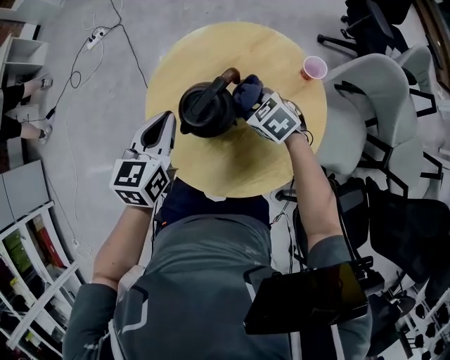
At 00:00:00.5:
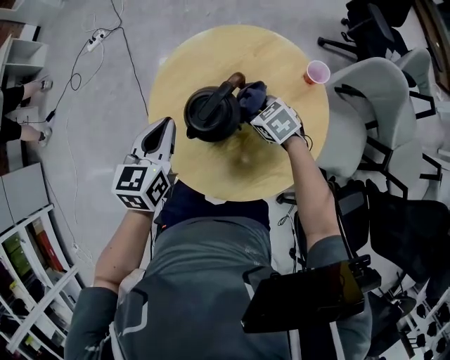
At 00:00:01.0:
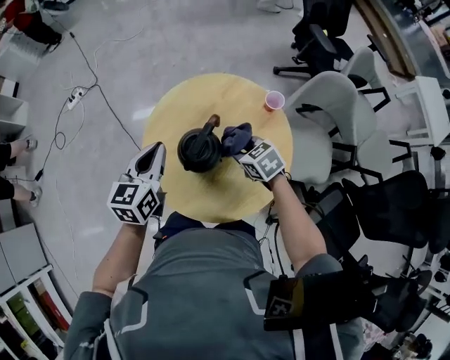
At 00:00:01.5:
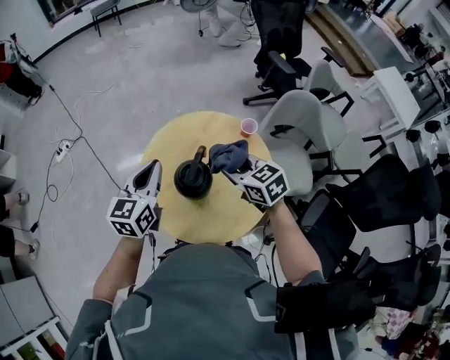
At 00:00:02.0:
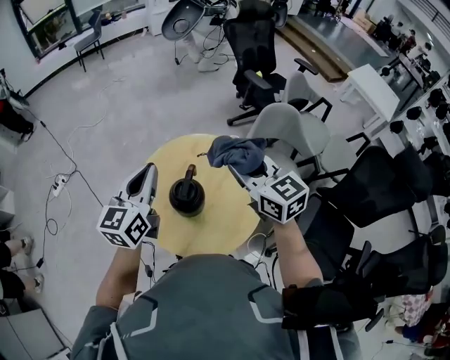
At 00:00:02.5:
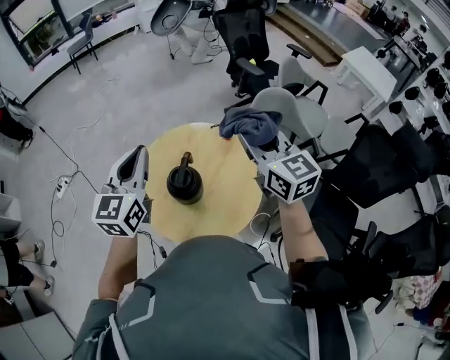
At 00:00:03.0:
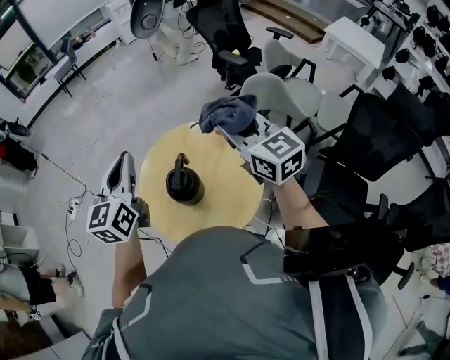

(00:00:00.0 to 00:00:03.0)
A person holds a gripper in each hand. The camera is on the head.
00:00:00.0 - 00:00:01.5: The left gripper goes about 15 cm upward, and swivels approximately 20 degrees, while the right gripper travels upward by roughly 20 cm, and swivels about 40 degrees.
00:00:01.5 - 00:00:03.0: The left gripper moves upward, about 15 cm, while the right gripper moves upward and to the right, some 20 cm, and changes its angle by approximately 40 degrees.

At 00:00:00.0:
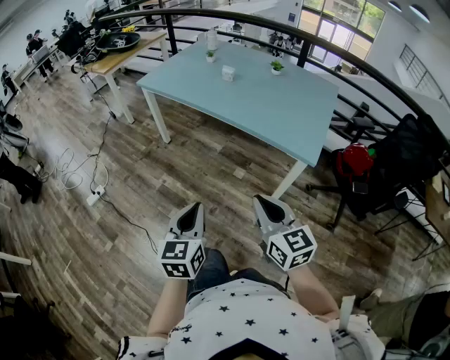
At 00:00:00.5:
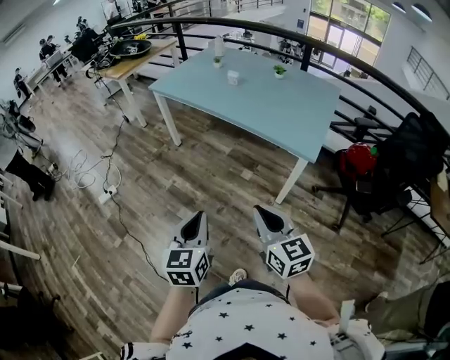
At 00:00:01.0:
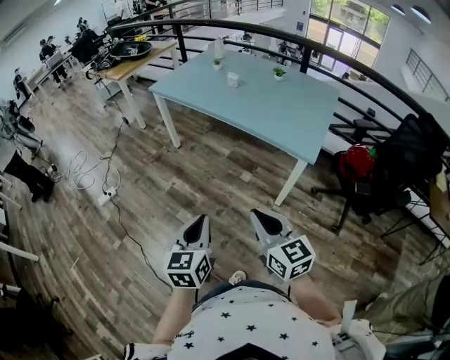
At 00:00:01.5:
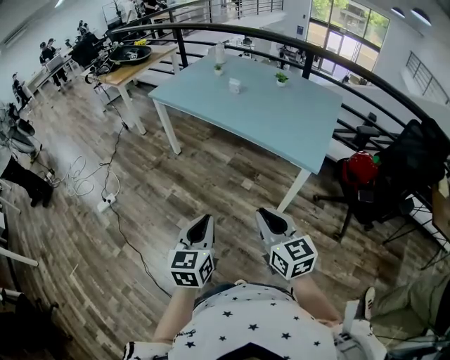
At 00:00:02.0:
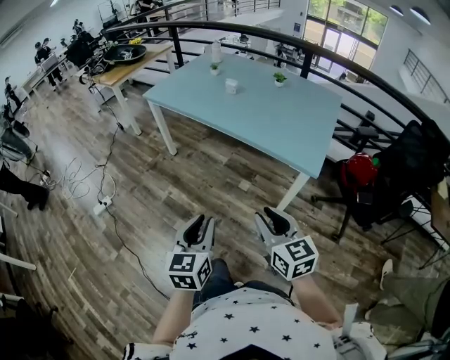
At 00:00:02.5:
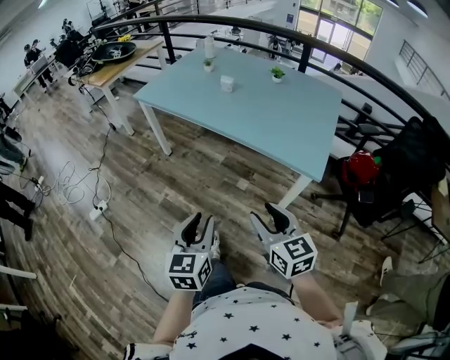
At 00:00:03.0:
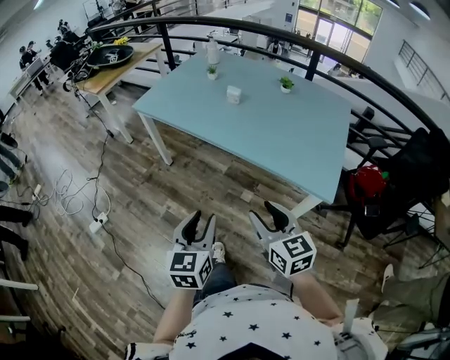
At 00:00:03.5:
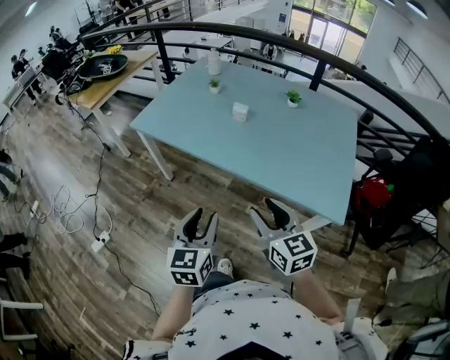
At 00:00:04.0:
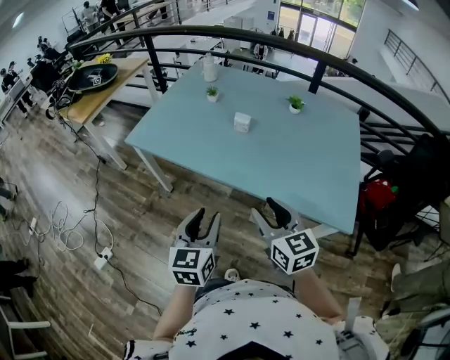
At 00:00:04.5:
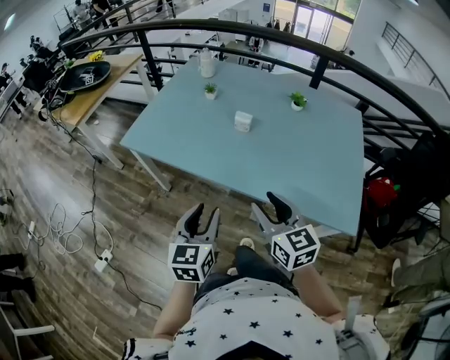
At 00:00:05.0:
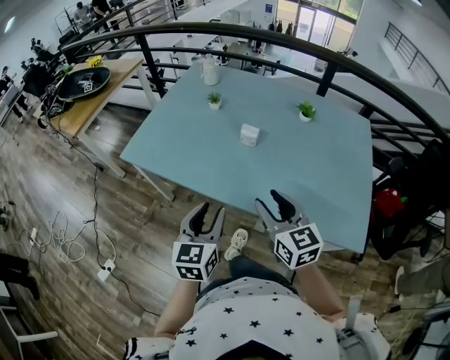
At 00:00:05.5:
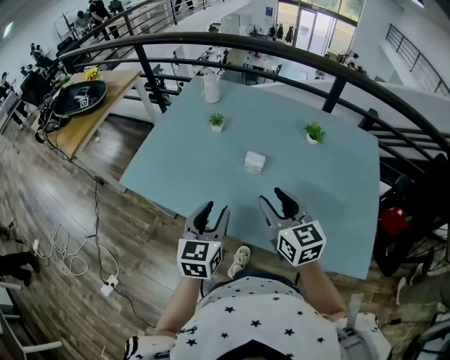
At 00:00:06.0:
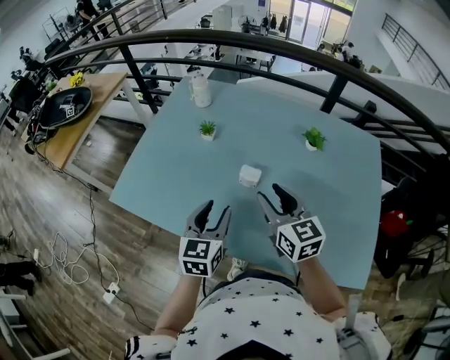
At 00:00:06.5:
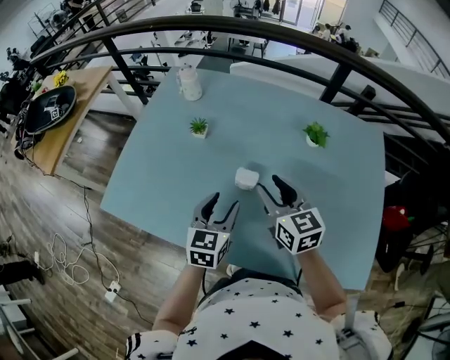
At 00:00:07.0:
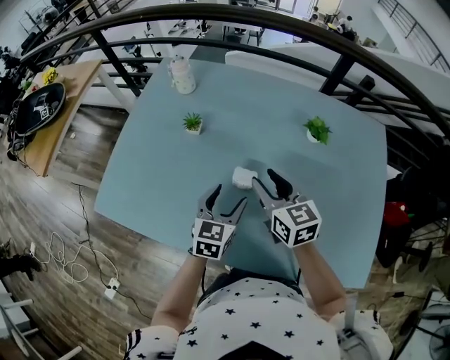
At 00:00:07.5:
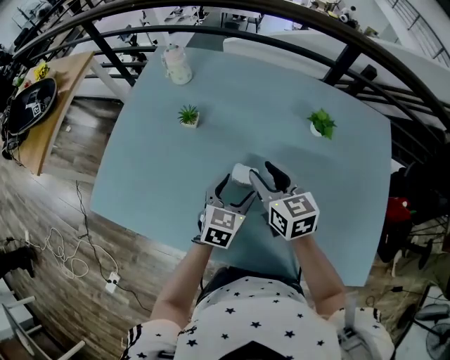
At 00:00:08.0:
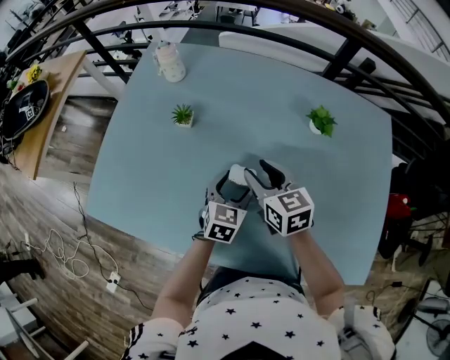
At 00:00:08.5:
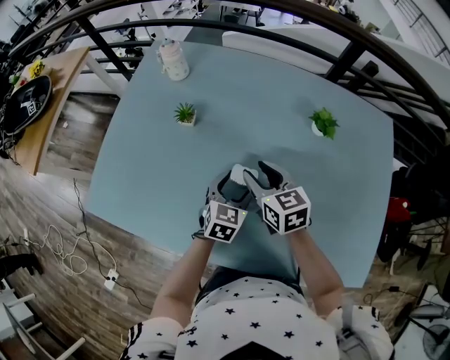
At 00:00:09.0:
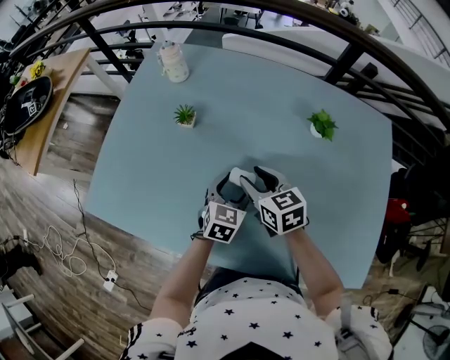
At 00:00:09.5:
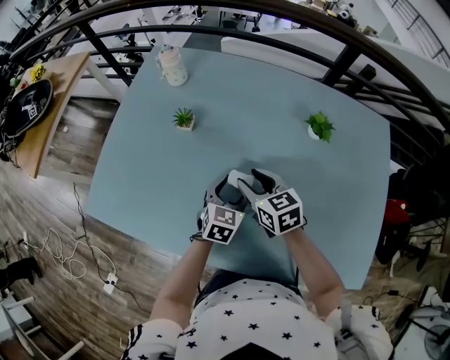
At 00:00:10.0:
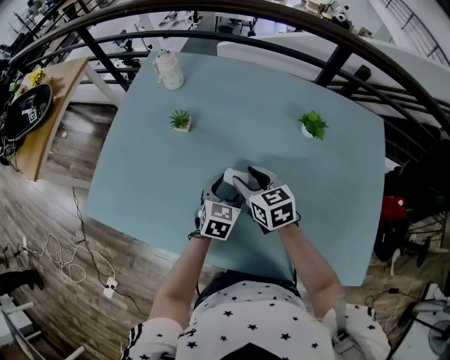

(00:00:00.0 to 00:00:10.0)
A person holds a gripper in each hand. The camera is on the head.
00:00:00.0 - 00:00:02.0: The right gripper goes backward and returns, approximately 10 cm each way. The left gripper moves approximately 10 cm backward and comes back.
00:00:02.0 - 00:00:04.0: The two grippers travel together, forward, approximately 40 cm.
00:00:04.0 - 00:00:06.0: The two grippers go approximately 35 cm forward.
00:00:06.0 - 00:00:08.0: The right gripper heads forward and downward, covering approximately 20 cm, while the left gripper moves downward, forward and to the right, about 25 cm, swivels some 20 degrees, and opens up.
00:00:08.0 - 00:00:10.0: The grippers make only small movements.

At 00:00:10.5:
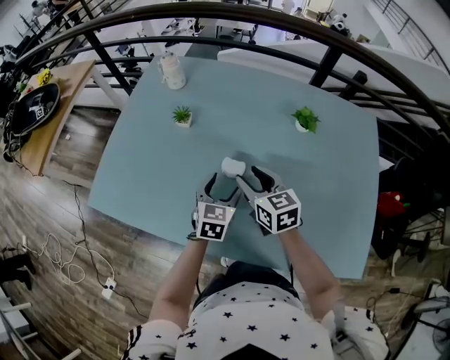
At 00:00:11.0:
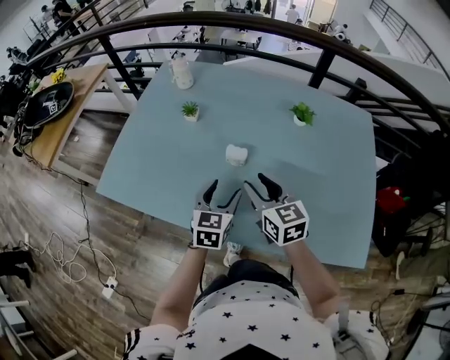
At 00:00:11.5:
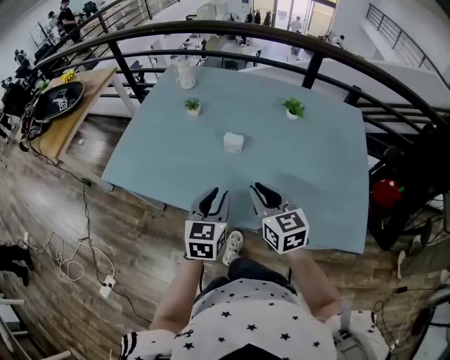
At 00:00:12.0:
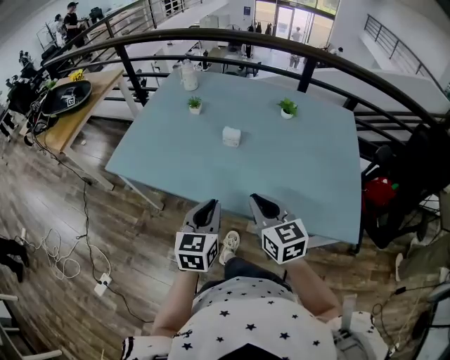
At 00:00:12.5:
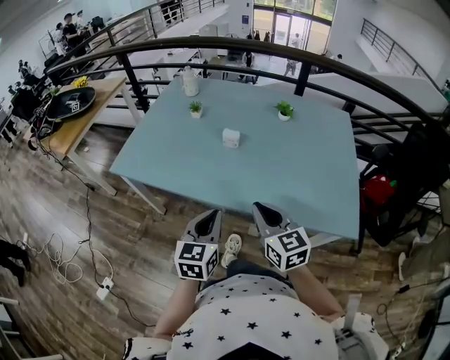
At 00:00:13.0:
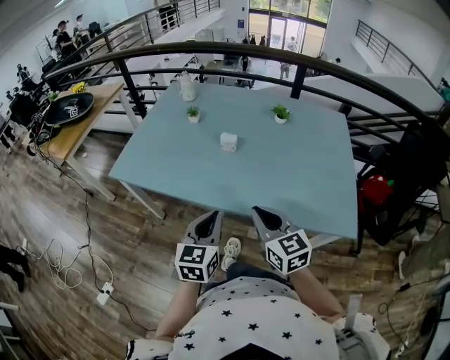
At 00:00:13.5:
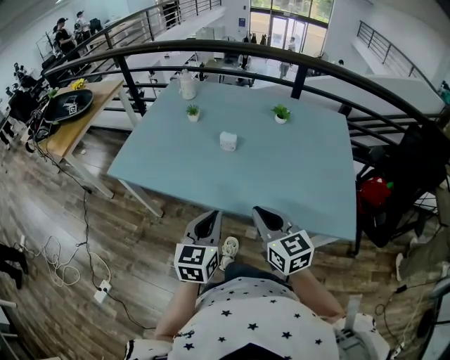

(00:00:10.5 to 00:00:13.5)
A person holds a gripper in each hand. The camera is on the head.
00:00:10.5 - 00:00:12.0: Both grippers travel together backward, roughly 30 cm. The right gripper closes its fingers; the left gripper closes.
00:00:12.0 - 00:00:13.5: The grippers both shift backward by roughly 5 cm.

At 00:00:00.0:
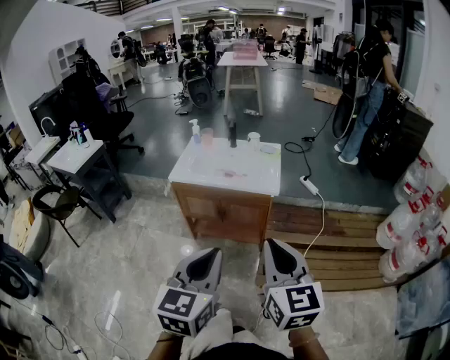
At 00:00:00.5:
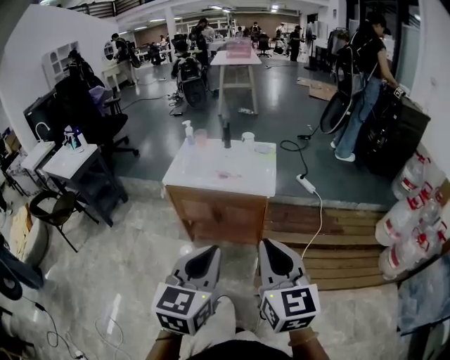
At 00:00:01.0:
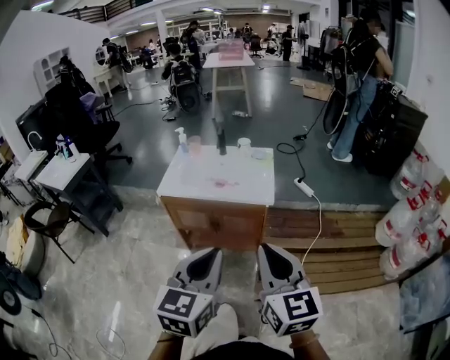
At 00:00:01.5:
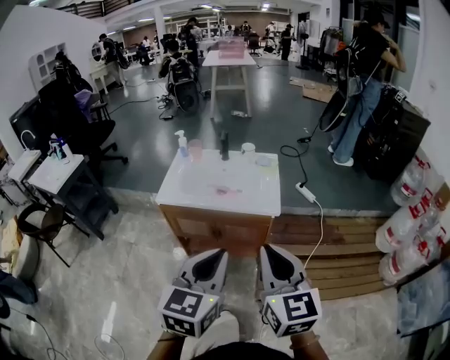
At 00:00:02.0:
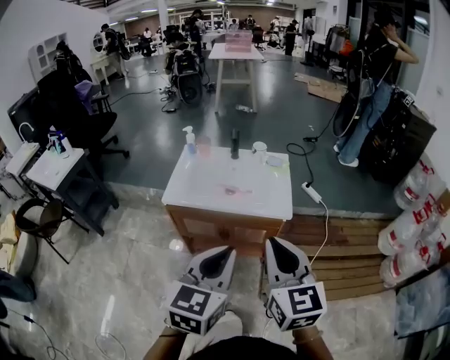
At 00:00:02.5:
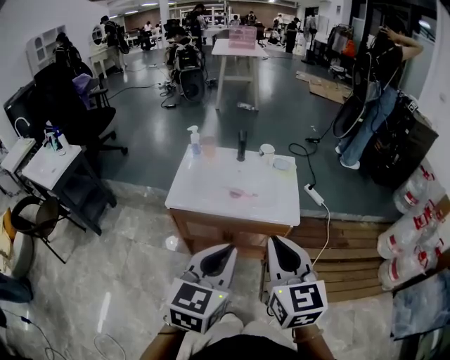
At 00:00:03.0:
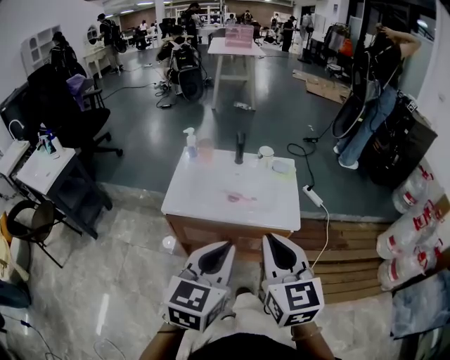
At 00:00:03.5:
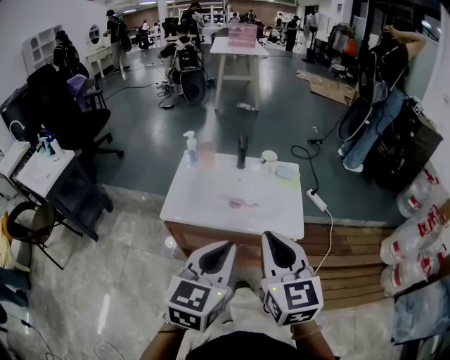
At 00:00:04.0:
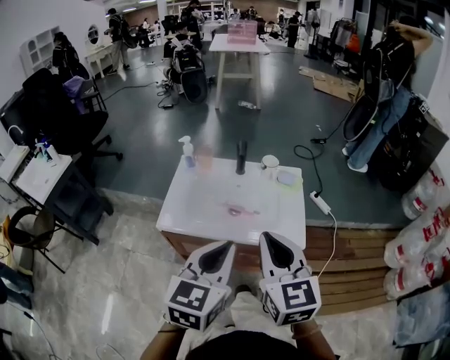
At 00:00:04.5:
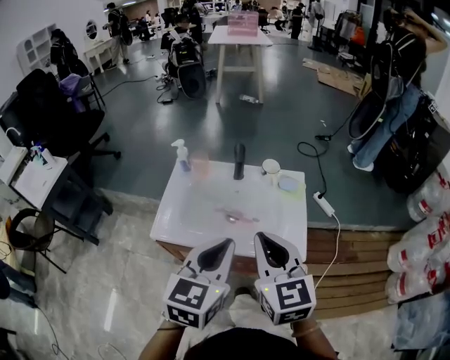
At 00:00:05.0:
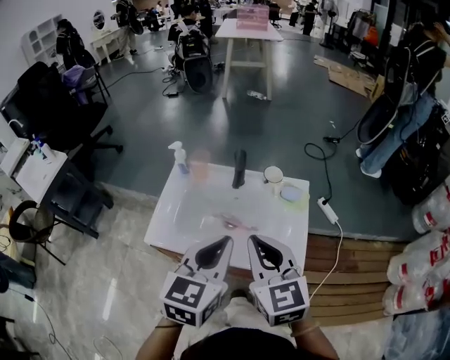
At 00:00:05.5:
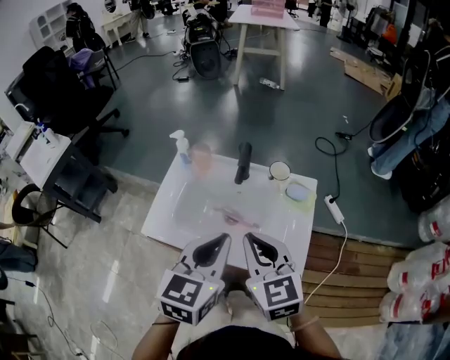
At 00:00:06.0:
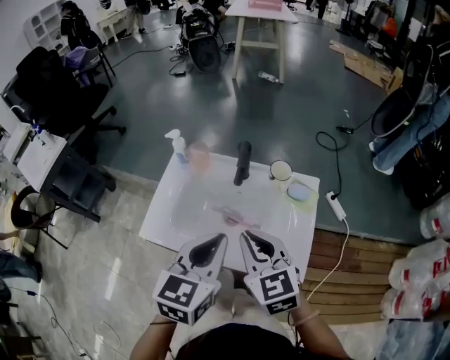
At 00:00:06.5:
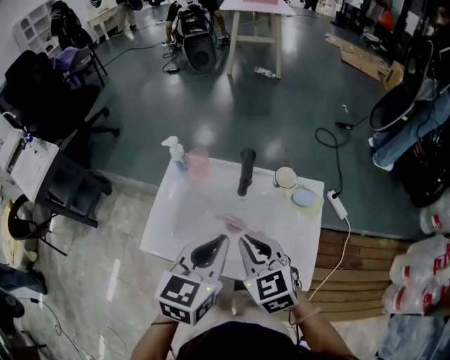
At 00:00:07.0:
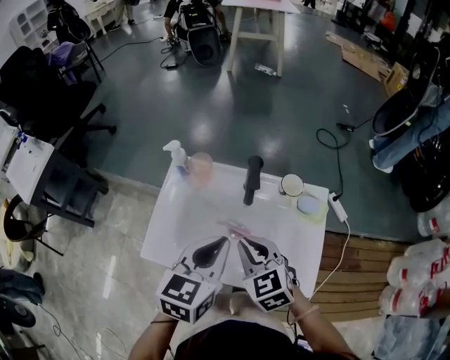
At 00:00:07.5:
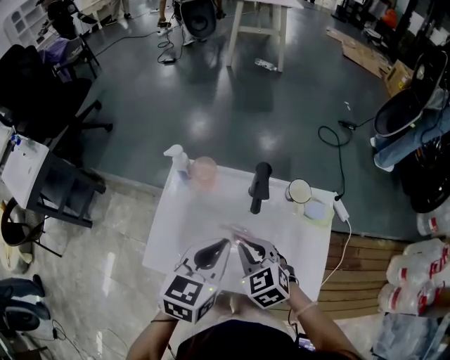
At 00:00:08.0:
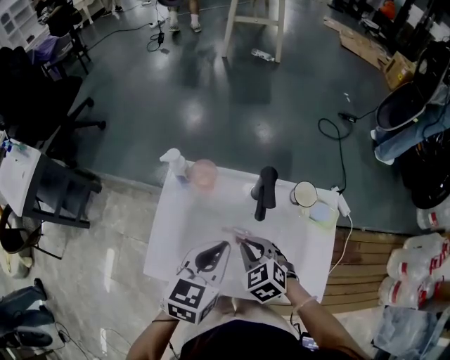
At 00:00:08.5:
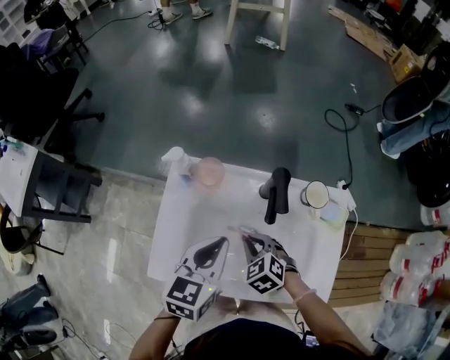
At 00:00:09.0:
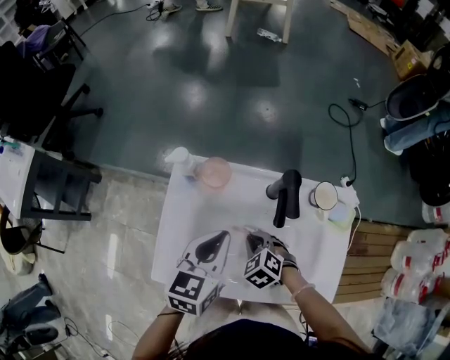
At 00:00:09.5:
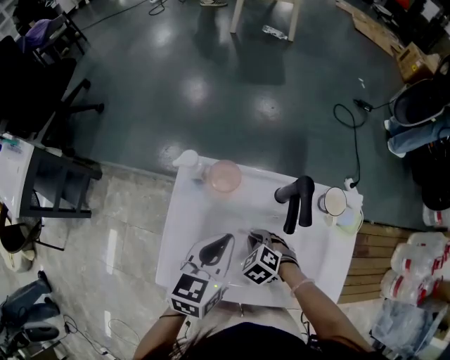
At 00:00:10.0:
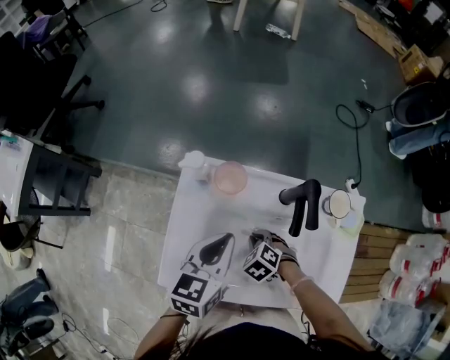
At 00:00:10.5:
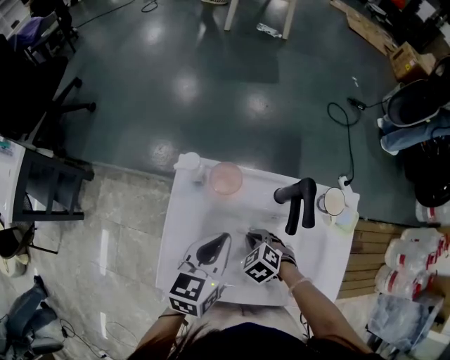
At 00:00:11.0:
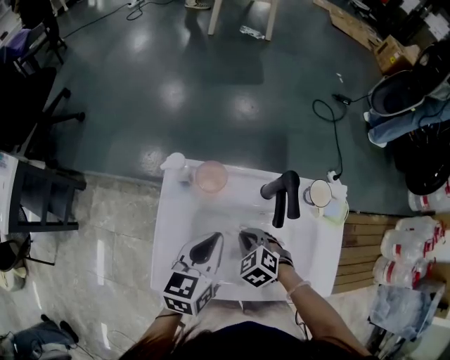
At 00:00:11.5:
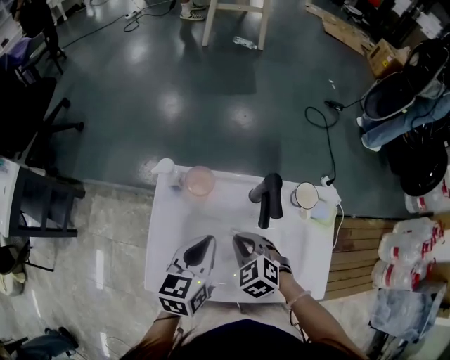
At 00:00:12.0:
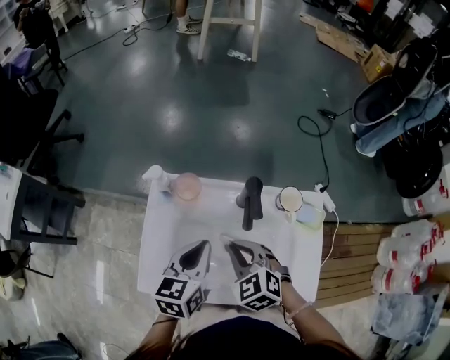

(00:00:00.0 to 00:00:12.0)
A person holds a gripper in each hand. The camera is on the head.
00:00:00.0 - 00:00:02.0: The left gripper travels forward by roughly 20 cm; the right gripper moves forward and to the left, roughly 20 cm.
00:00:02.0 - 00:00:04.0: Both grippers move forward, roughly 20 cm.
00:00:04.0 - 00:00:06.0: The left gripper moves forward, some 15 cm. The right gripper goes some 20 cm forward and downward, and swivels some 20 degrees.
00:00:06.0 - 00:00:08.0: The right gripper goes about 20 cm downward and forward, and rotates approximately 30 degrees, while the left gripper heads forward, downward and to the left, covering roughly 15 cm.
00:00:08.0 - 00:00:10.0: The right gripper is displaced downward by about 15 cm, and swivels about 20 degrees. The left gripper moves about 10 cm.
00:00:10.0 - 00:00:12.0: The right gripper heads upward, covering about 20 cm, and rotates about 30 degrees.
